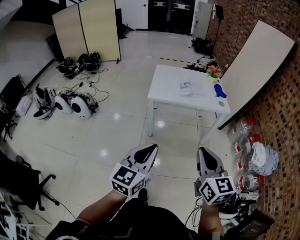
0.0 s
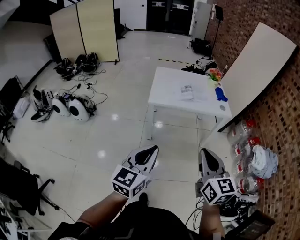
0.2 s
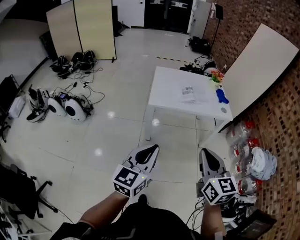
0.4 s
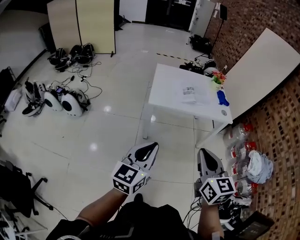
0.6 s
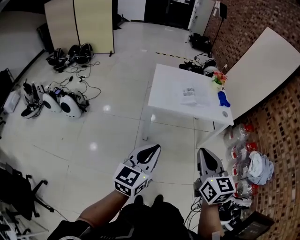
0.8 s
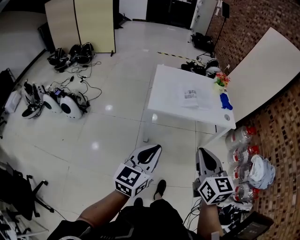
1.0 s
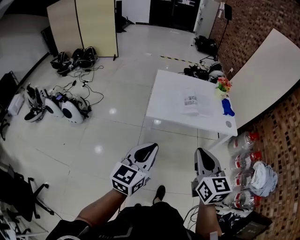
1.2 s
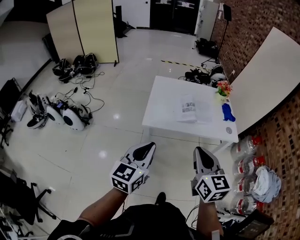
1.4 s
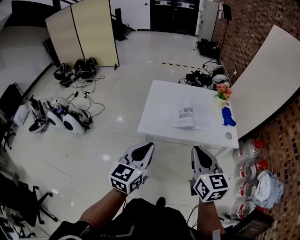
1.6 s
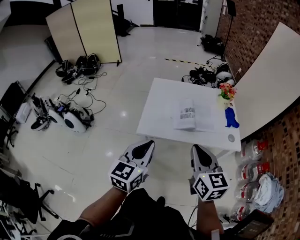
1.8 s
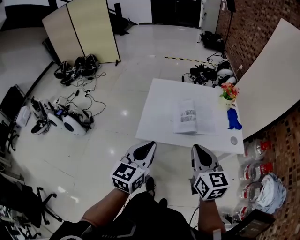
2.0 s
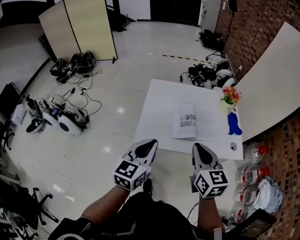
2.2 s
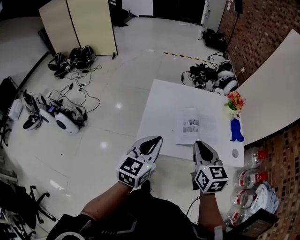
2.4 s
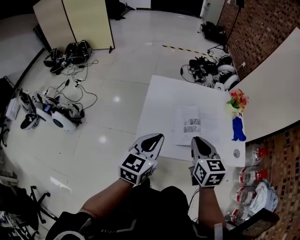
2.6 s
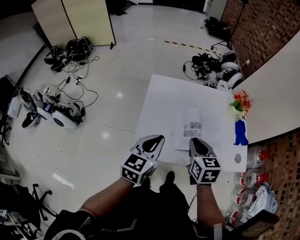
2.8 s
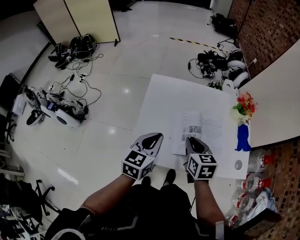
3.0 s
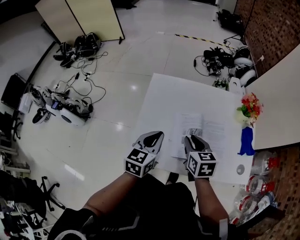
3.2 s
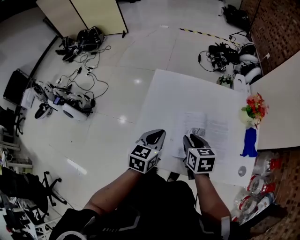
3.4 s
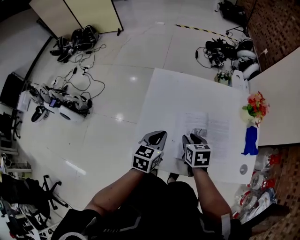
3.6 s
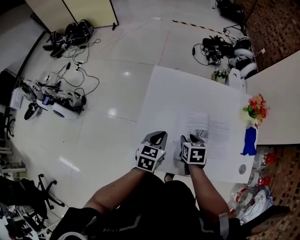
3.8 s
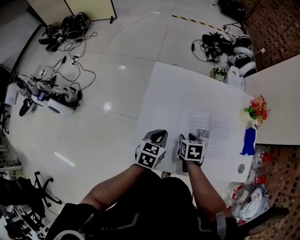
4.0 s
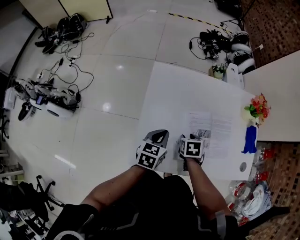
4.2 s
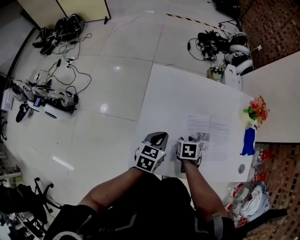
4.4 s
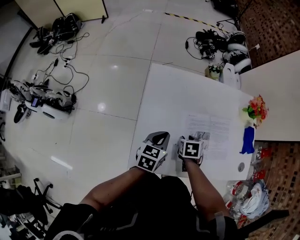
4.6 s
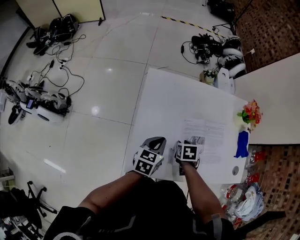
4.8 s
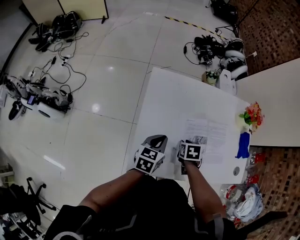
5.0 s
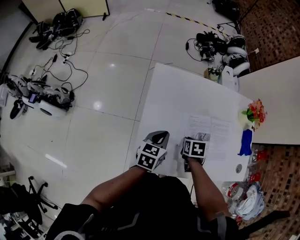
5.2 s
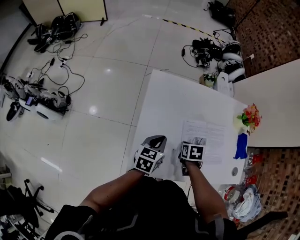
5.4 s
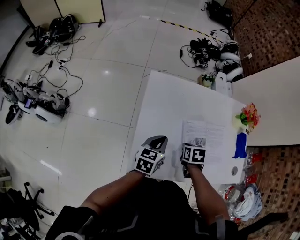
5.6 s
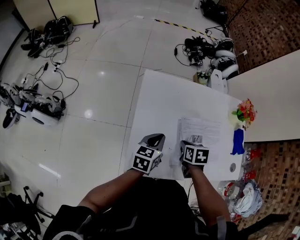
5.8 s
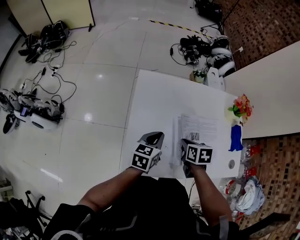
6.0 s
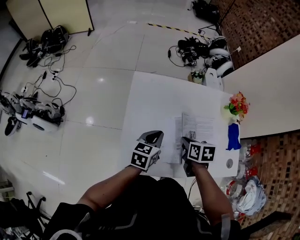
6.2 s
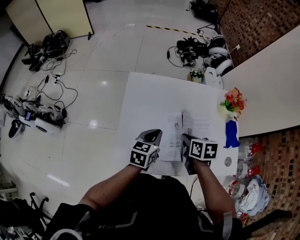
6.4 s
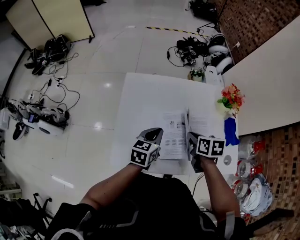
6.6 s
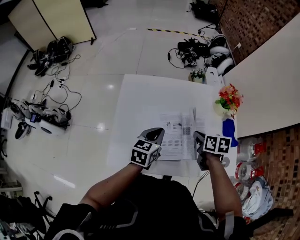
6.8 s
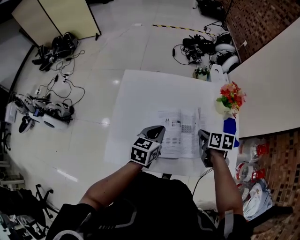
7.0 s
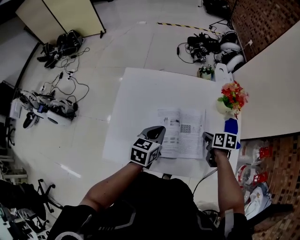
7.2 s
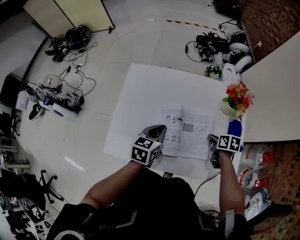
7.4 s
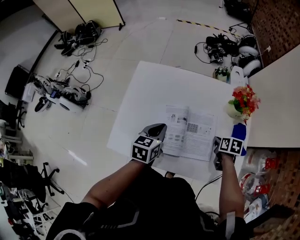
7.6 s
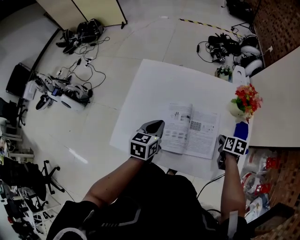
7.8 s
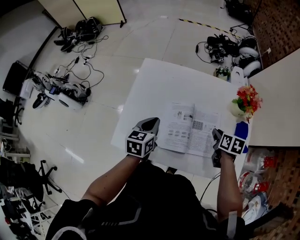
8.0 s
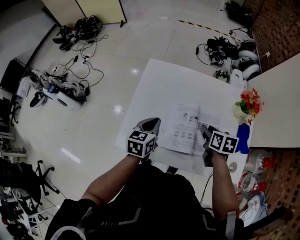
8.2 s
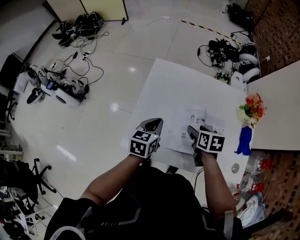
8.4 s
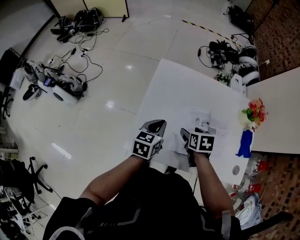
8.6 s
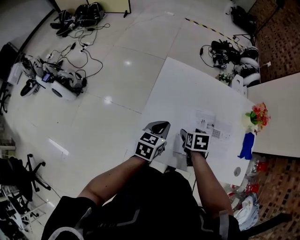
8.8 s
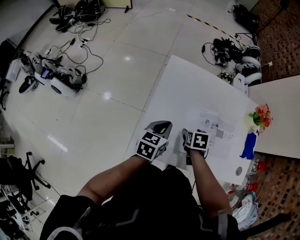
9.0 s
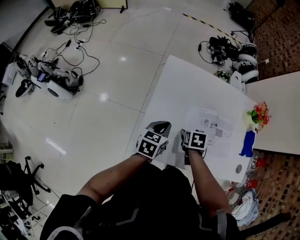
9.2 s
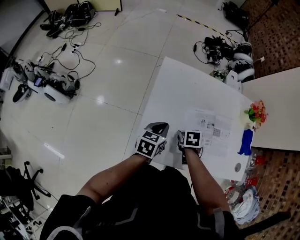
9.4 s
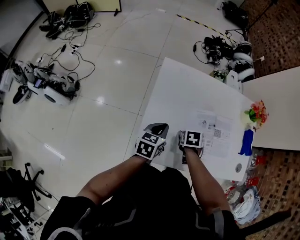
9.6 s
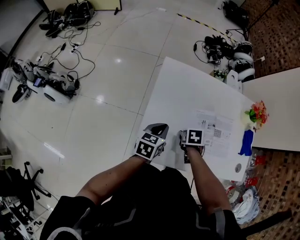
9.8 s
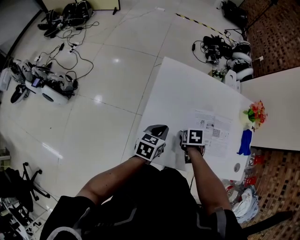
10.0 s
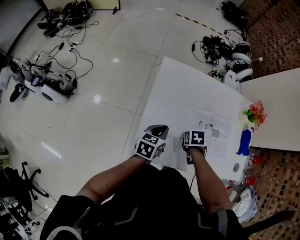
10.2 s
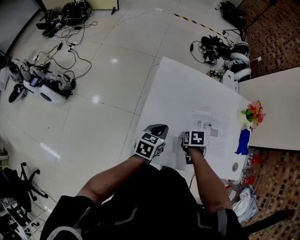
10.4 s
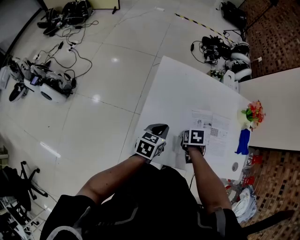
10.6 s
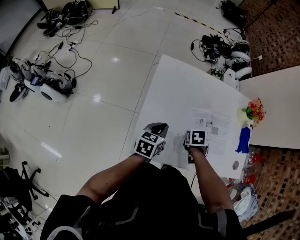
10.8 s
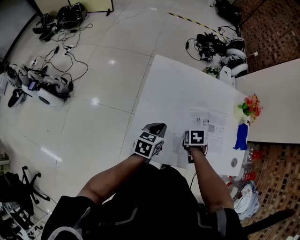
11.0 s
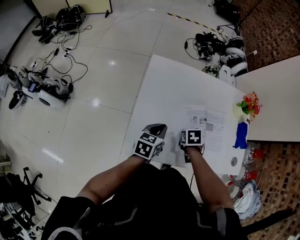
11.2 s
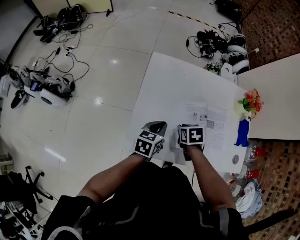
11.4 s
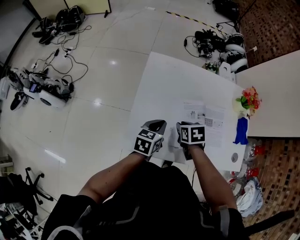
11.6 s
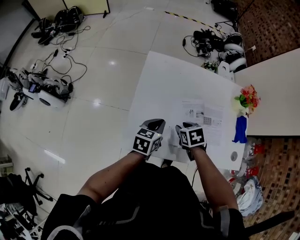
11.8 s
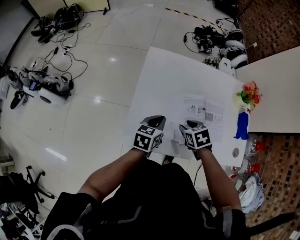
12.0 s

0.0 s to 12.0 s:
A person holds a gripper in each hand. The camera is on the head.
0.0 to 1.6 s: Both grippers travel together forward, some 35 cm.
1.6 to 3.0 s: The right gripper heads forward and downward, covering about 40 cm, and swivels roughly 30 degrees, while the left gripper is displaced forward by about 35 cm.
3.0 to 4.4 s: The two grippers go approximately 20 cm downward and forward. The right gripper points its fingers roughly 30 degrees further downward, and opens its fingers.
4.4 to 6.0 s: The right gripper shifts roughly 10 cm upward, and closes up.
6.0 to 7.6 s: The left gripper travels to the right by roughly 15 cm; the right gripper shifts about 30 cm to the right.
7.6 to 9.0 s: The left gripper shifts about 20 cm to the left. Meanwhile the right gripper heads to the left, covering about 35 cm, swivels about 20 degrees, and opens up.
9.0 to 10.4 s: The right gripper closes up.
10.4 to 12.0 s: The right gripper is displaced upward by roughly 5 cm, and rotates roughly 20 degrees.

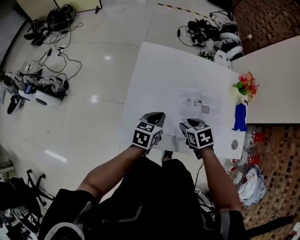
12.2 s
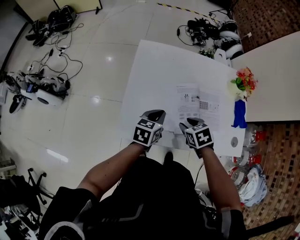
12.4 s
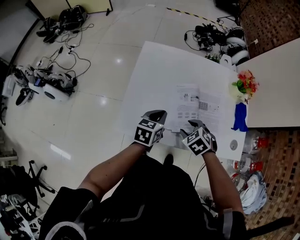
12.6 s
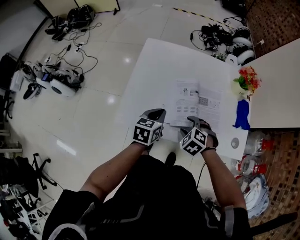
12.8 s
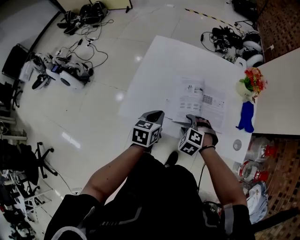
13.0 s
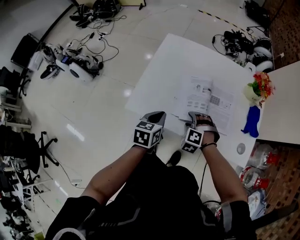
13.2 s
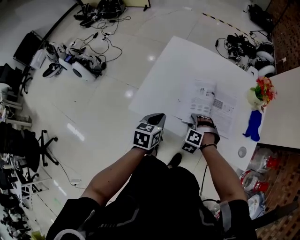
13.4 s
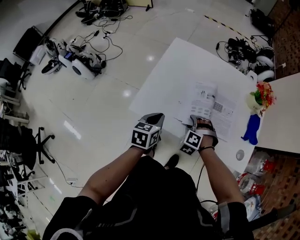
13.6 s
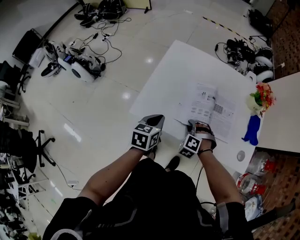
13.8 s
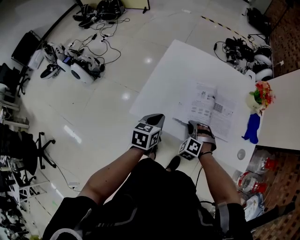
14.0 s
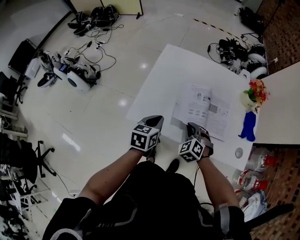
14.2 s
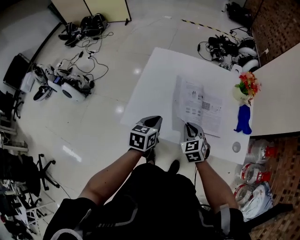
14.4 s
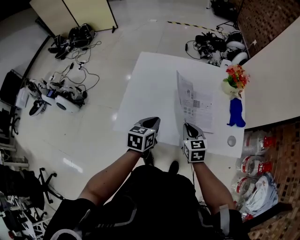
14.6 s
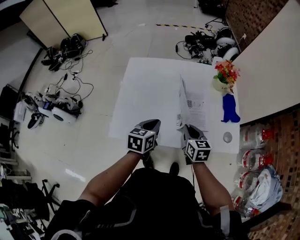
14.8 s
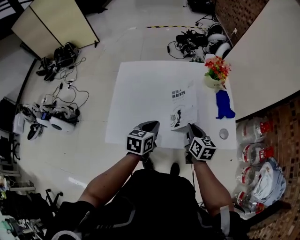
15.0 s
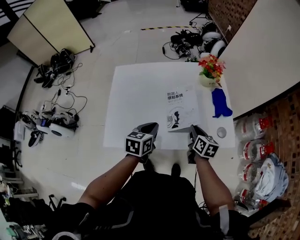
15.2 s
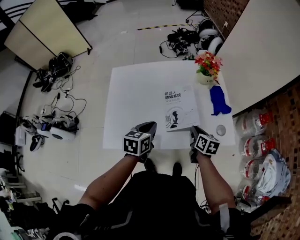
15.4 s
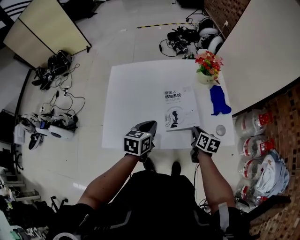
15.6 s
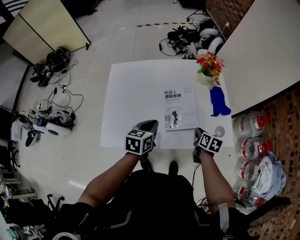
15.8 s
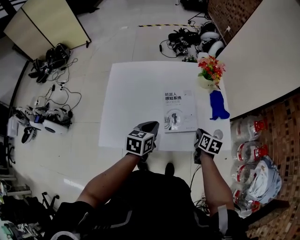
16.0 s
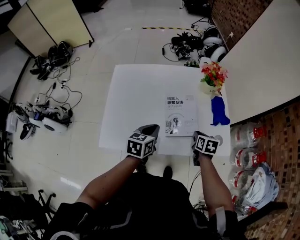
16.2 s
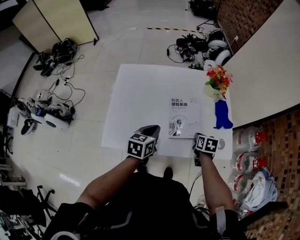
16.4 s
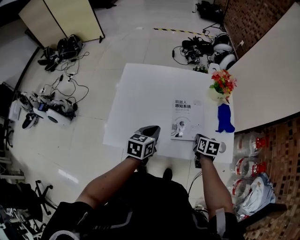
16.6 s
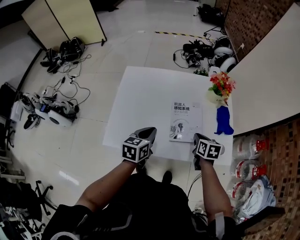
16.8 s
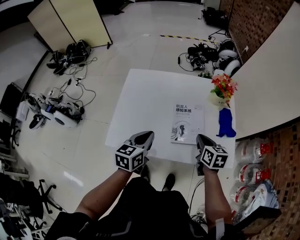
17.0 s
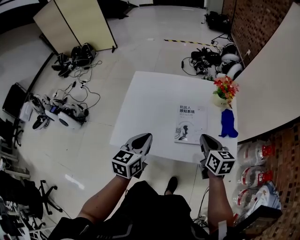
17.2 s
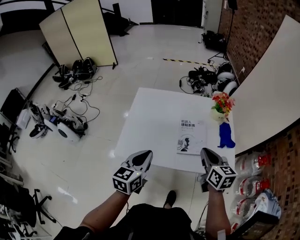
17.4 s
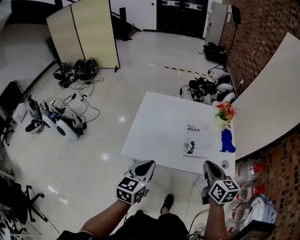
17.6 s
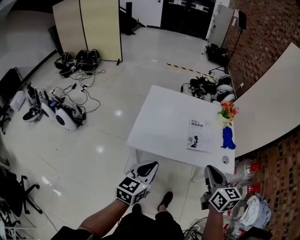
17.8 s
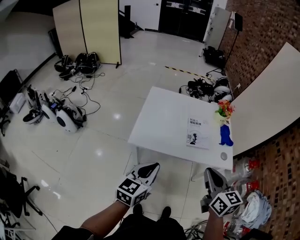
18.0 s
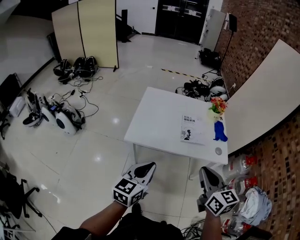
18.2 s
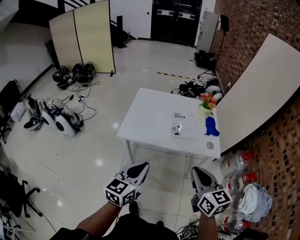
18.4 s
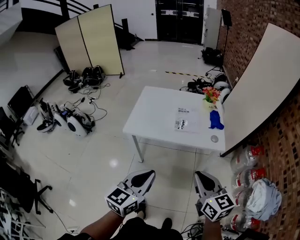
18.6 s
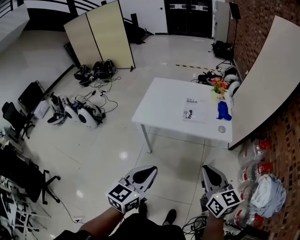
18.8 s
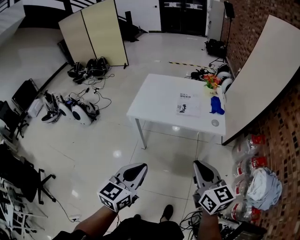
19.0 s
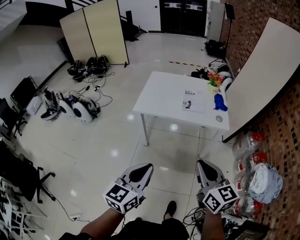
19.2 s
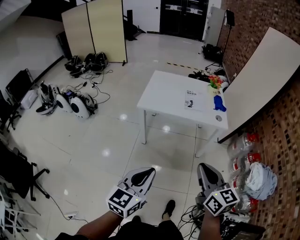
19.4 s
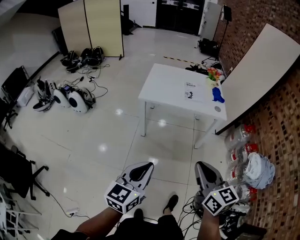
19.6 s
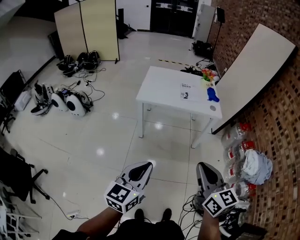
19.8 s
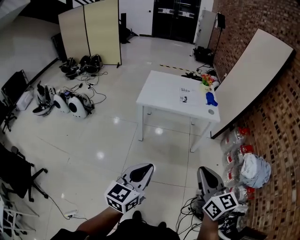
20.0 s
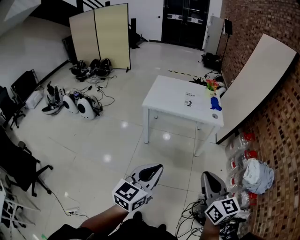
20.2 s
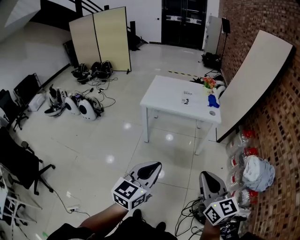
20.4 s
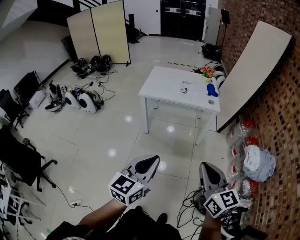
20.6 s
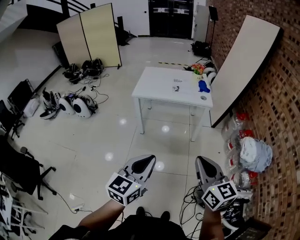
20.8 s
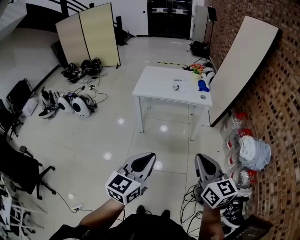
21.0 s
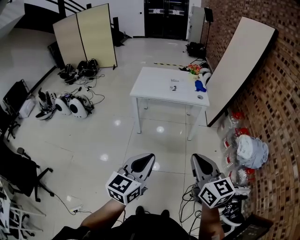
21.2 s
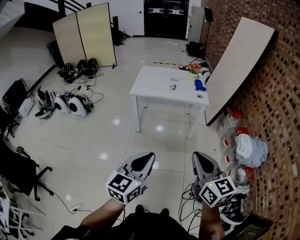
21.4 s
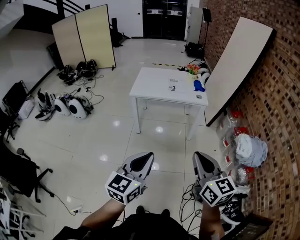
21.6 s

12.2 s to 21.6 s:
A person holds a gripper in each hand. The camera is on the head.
12.2 to 13.8 s: The right gripper shifts approximately 10 cm backward and downward, and rolls counterclockwise, seen from behind, by roughly 70 degrees, while the left gripper goes roughly 10 cm backward, and turns by some 20 degrees.
13.8 to 15.4 s: The left gripper moves to the right and forward, roughly 20 cm, and changes its angle by roughly 20 degrees. Meanwhile the right gripper is displaced to the right by some 25 cm, and rotates around the line of its fingers by some 120 degrees, clockwise from behind.
15.4 to 17.0 s: The left gripper shifts about 5 cm upward. Meanwhile the right gripper goes roughly 10 cm upward.
17.0 to 18.4 s: The left gripper travels backward by approximately 35 cm. Meanwhile the right gripper heads backward and upward, covering some 40 cm, and rotates roughly 30 degrees.
18.4 to 20.0 s: The two grippers go roughly 40 cm backward.
20.0 to 21.6 s: Both grippers travel together backward and to the right, roughly 15 cm.

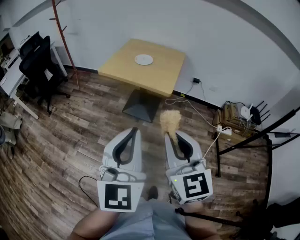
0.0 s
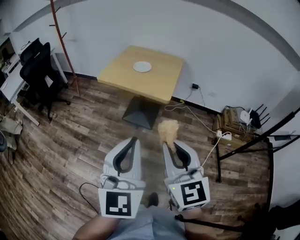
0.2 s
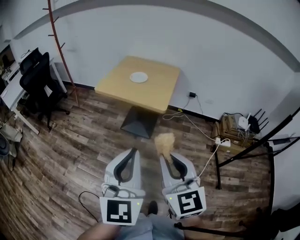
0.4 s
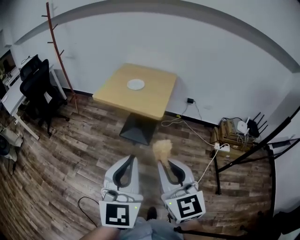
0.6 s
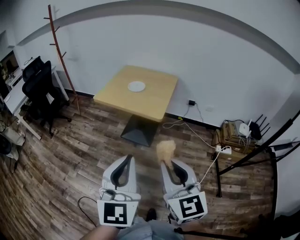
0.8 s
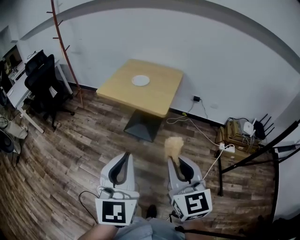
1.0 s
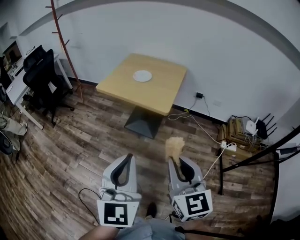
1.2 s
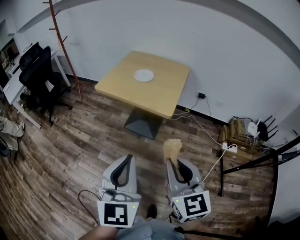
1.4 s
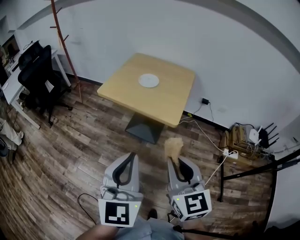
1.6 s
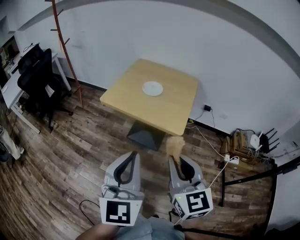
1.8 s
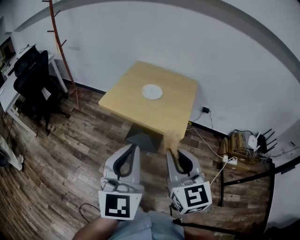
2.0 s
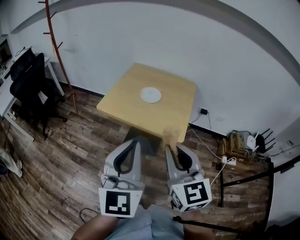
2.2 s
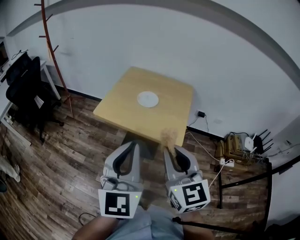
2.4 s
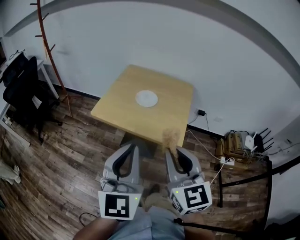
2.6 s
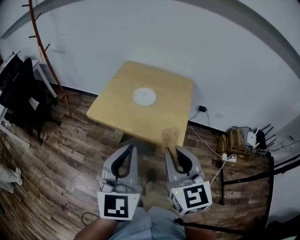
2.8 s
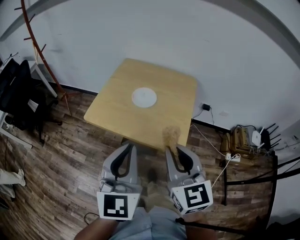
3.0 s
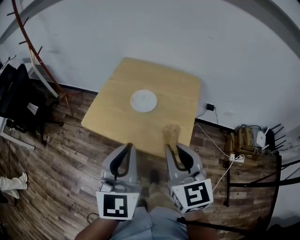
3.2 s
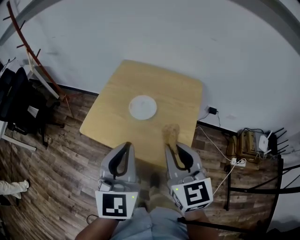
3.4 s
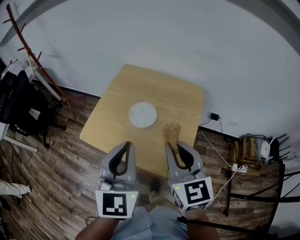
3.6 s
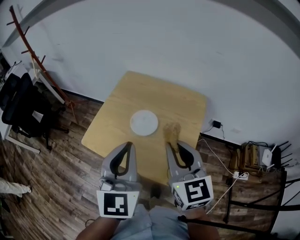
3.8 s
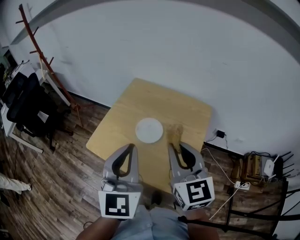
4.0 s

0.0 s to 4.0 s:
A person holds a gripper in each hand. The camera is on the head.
0.0 to 1.4 s: The left gripper goes about 10 cm forward and downward; the right gripper moves forward, to the right and downward, roughly 10 cm.
1.4 to 2.6 s: The grippers both shift forward by some 20 cm.
2.6 to 4.0 s: The grippers both shift forward by roughly 25 cm.
